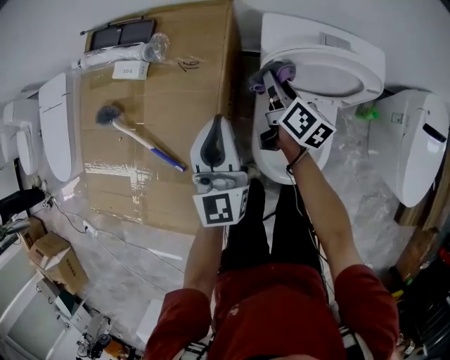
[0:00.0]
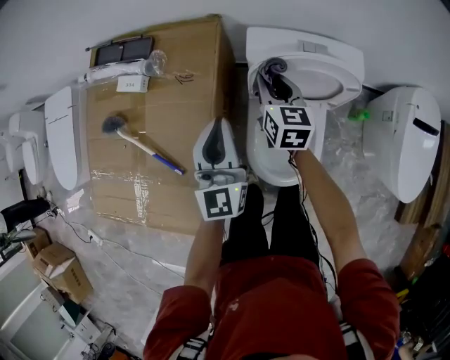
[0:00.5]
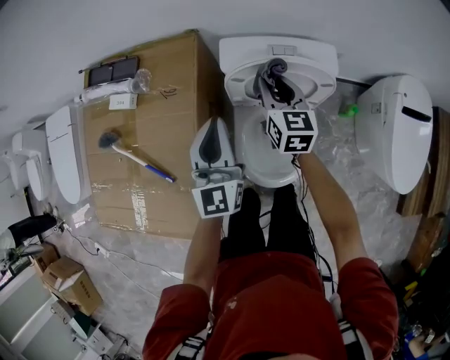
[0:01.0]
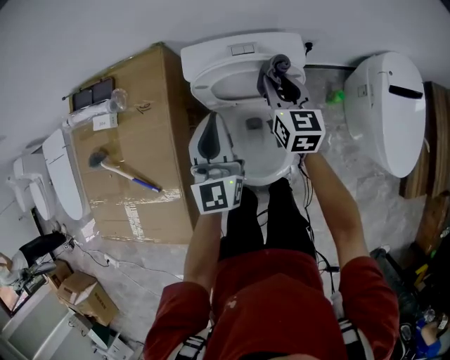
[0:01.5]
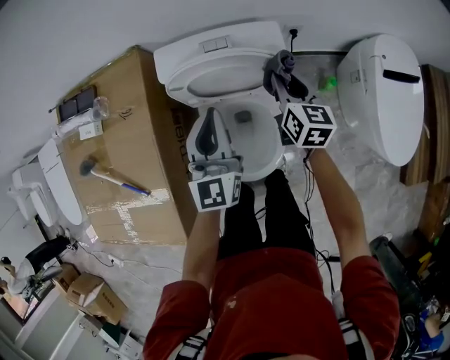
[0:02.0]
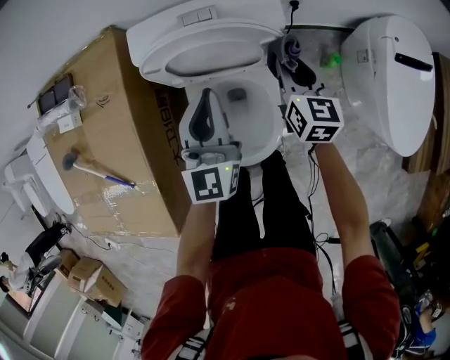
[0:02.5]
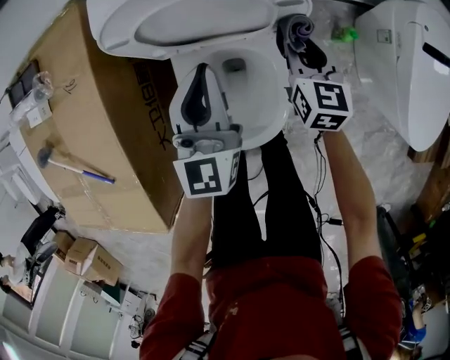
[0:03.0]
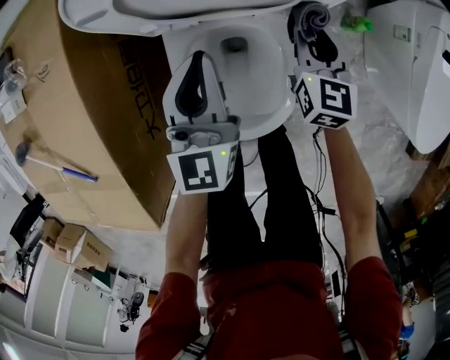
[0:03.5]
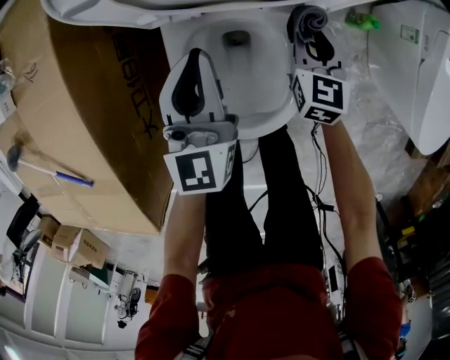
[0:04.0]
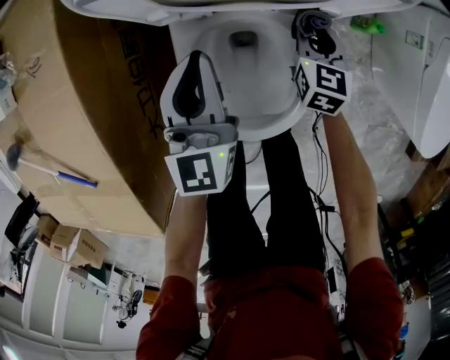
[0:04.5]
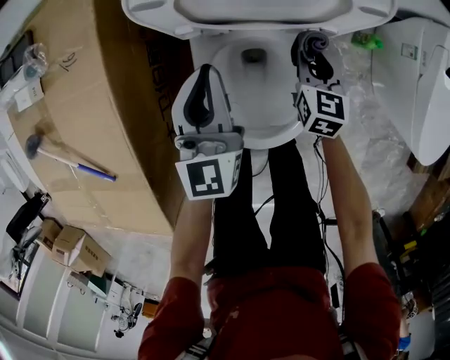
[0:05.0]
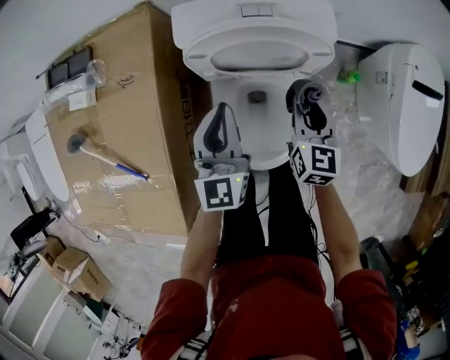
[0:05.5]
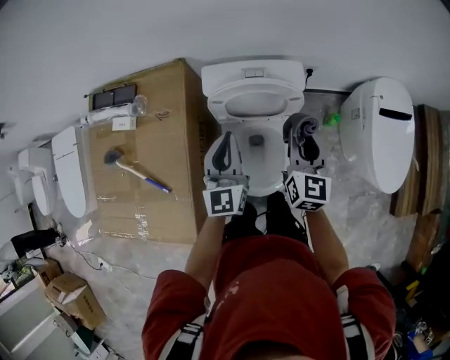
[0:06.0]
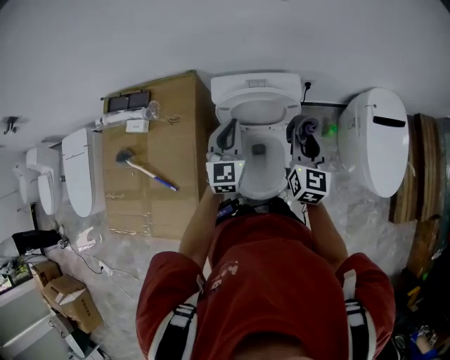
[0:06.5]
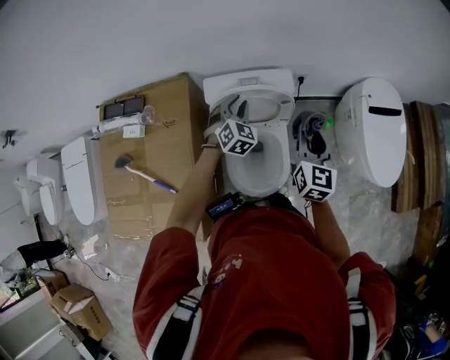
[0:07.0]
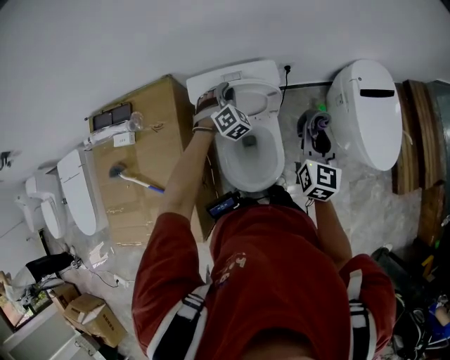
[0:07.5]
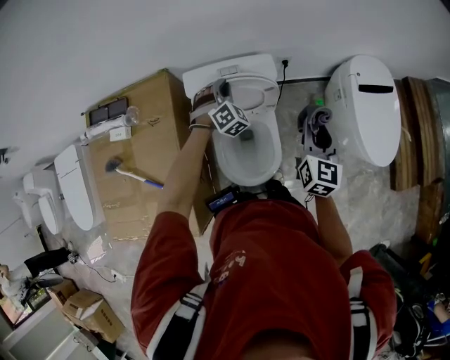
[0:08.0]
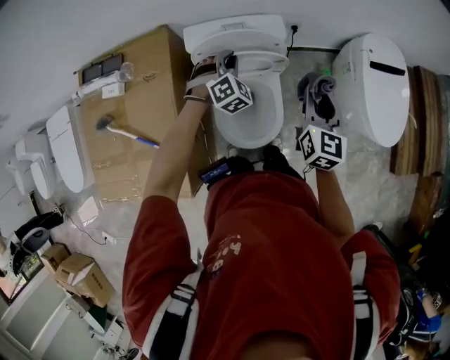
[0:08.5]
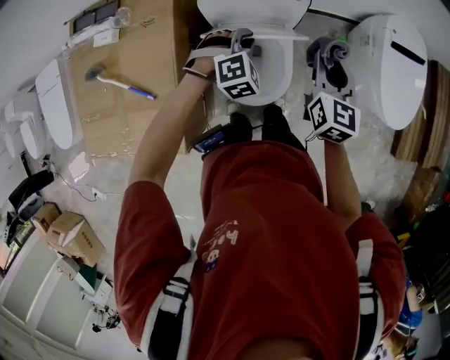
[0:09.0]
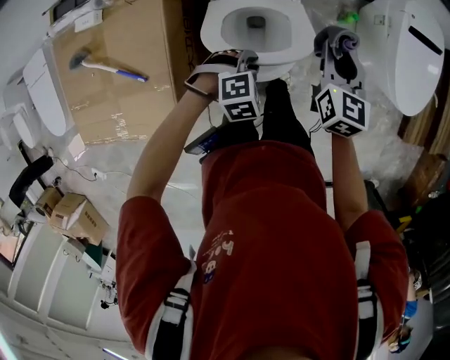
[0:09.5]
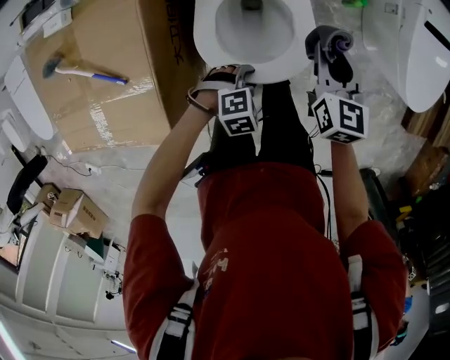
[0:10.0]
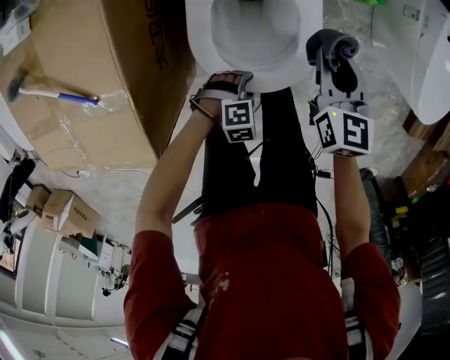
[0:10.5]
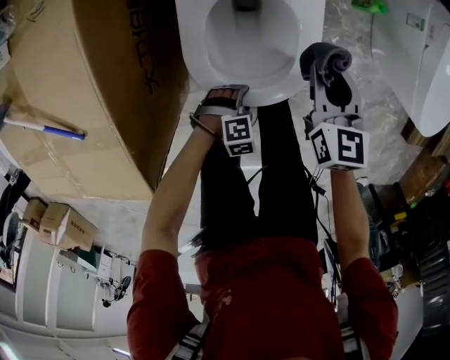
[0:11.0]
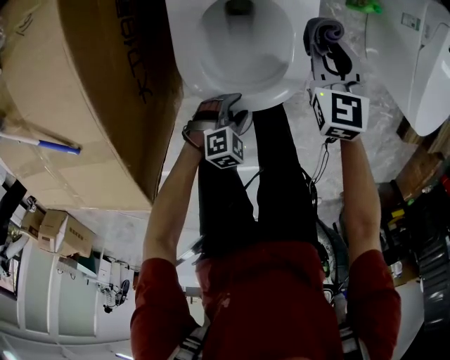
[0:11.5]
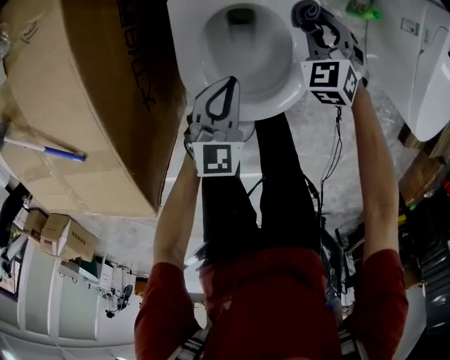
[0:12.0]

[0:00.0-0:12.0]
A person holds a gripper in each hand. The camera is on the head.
0:00.0 to 0:02.0: Both grippers travel together to the right, roughly 25 cm. The right gripper changes its angle by some 30 degrees.
0:02.0 to 0:04.0: Both grippers move downward, about 25 cm. The right gripper changes its angle by approximately 20 degrees.
0:04.0 to 0:06.0: The grippers both shift upward by about 35 cm.
0:06.0 to 0:08.0: The left gripper moves forward and downward, about 20 cm, and rolls clockwise, seen from behind, by about 60 degrees, while the right gripper heads to the right, covering about 10 cm.
0:08.0 to 0:10.0: The right gripper moves downward, about 20 cm, and rotates roughly 20 degrees; the left gripper moves about 40 cm, tilts its fingers some 40 degrees downward, and opens.
0:10.0 to 0:12.0: The right gripper shifts roughly 25 cm downward, and rotates around the line of its fingers by approximately 50 degrees, counterclockwise from behind. The left gripper moves approximately 20 cm downward and comes back, points its fingers about 40 degrees further upward, and closes its fingers.

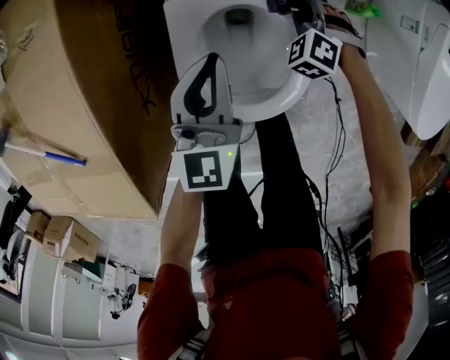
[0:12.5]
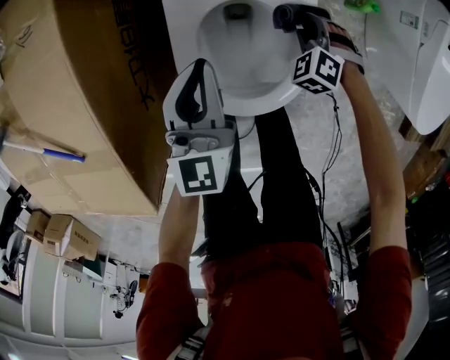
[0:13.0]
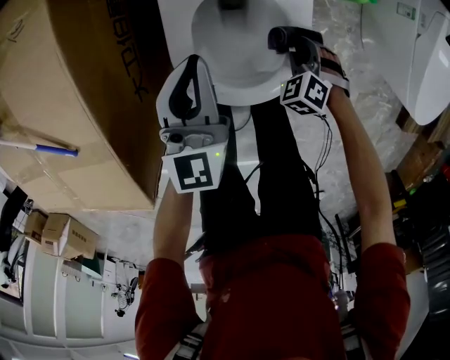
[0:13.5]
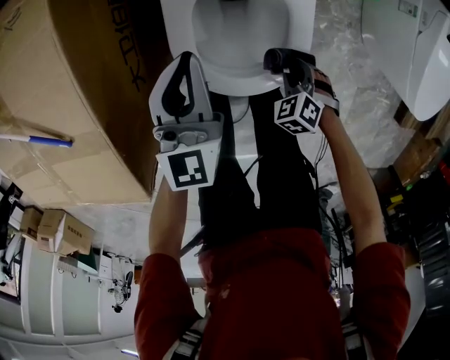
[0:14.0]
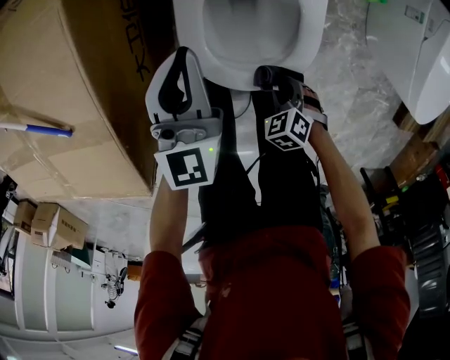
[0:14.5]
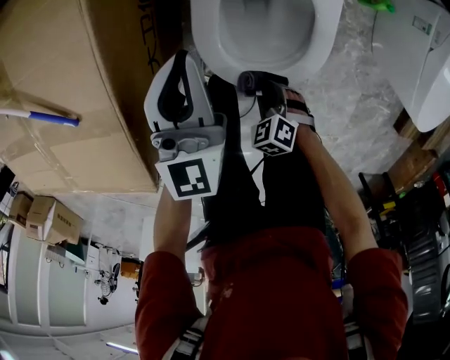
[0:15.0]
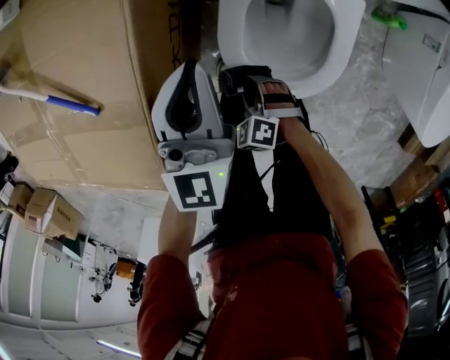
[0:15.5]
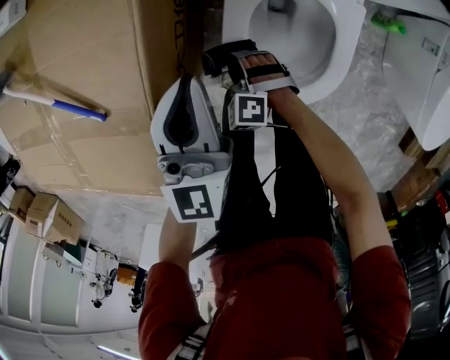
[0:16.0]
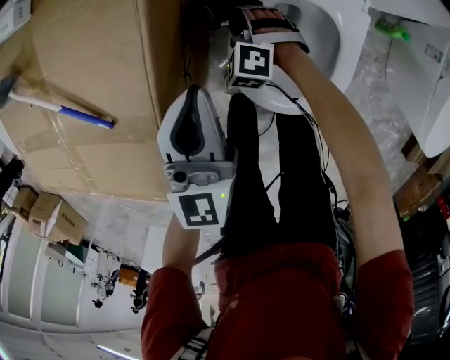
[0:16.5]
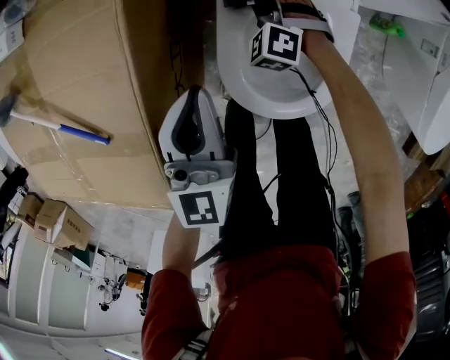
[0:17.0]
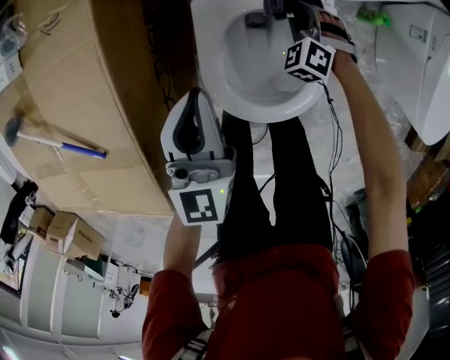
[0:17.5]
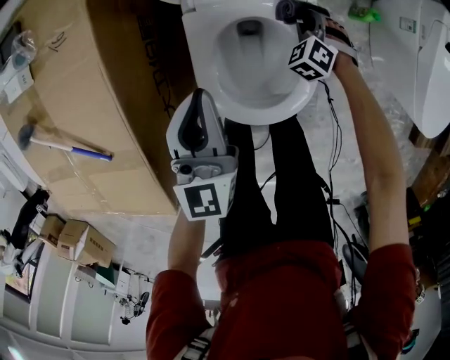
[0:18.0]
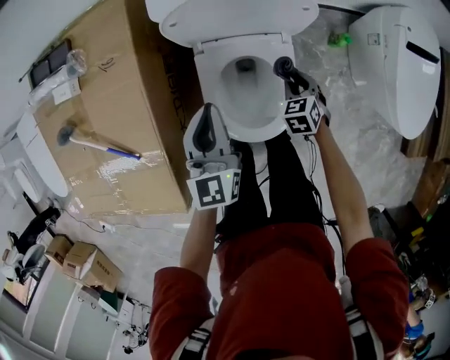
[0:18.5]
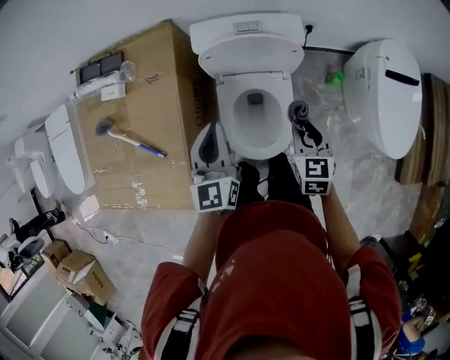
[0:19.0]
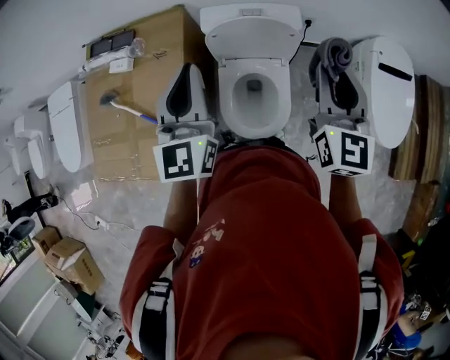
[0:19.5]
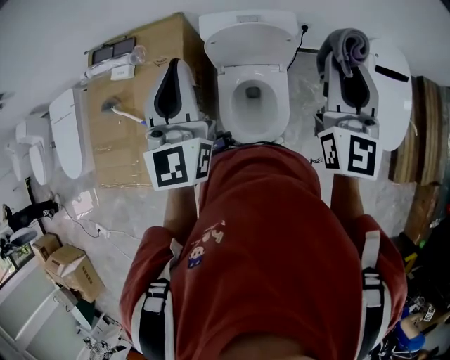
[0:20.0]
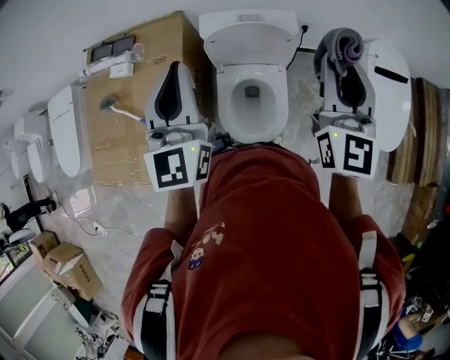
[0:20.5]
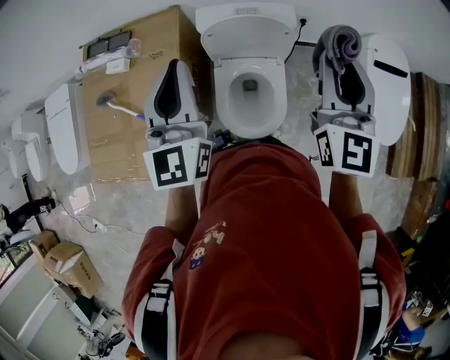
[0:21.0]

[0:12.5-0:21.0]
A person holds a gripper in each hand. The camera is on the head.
0:12.5 to 0:14.5: The right gripper moves roughly 30 cm, and rotates approximately 30 degrees. The left gripper changes place by roughly 10 cm.
0:14.5 to 0:16.5: The left gripper moves about 10 cm, while the right gripper moves some 35 cm, and swivels about 40 degrees.
0:16.5 to 0:19.0: The left gripper heads upward and to the right, covering some 25 cm, while the right gripper shifts about 50 cm upward and to the right, and twists roughly 70 degrees clockwise, seen from behind.
0:19.0 to 0:21.0: The two grippers go approximately 25 cm upward. The right gripper angles its fingers upward, by some 40 degrees.

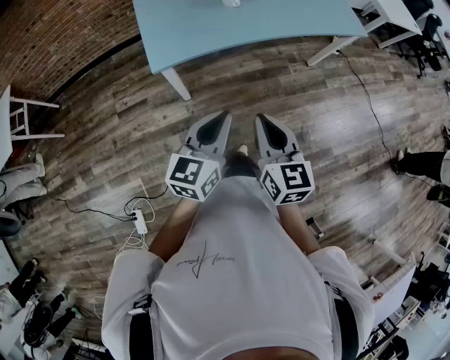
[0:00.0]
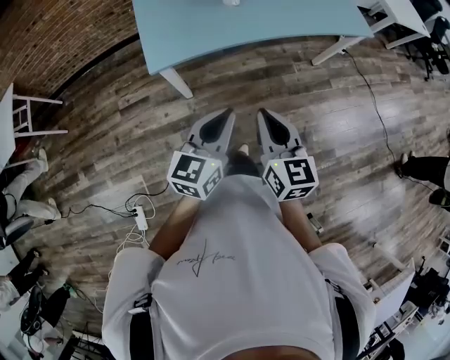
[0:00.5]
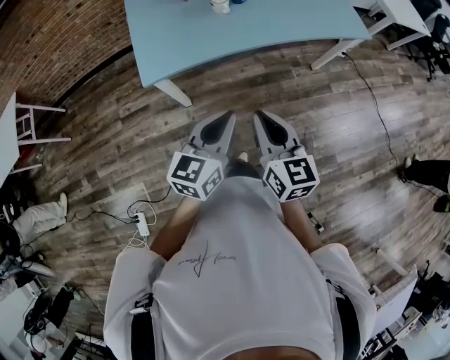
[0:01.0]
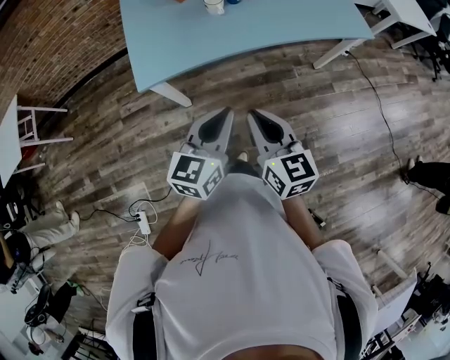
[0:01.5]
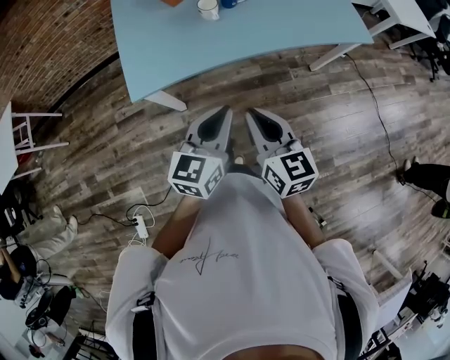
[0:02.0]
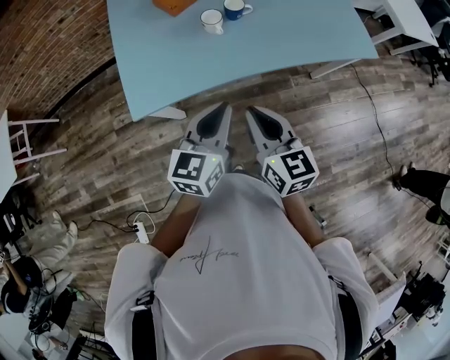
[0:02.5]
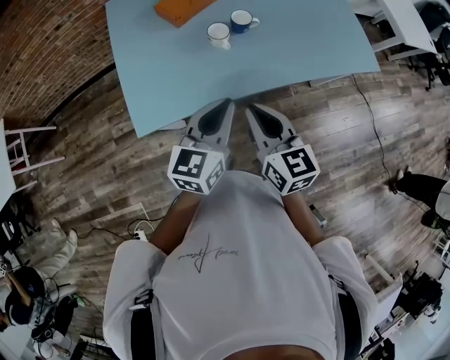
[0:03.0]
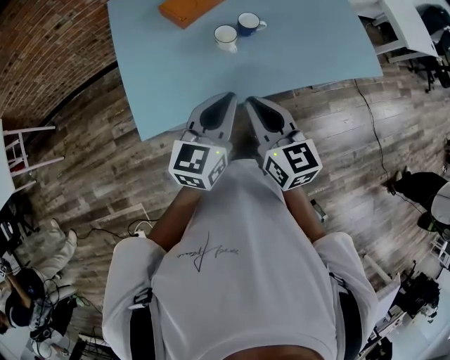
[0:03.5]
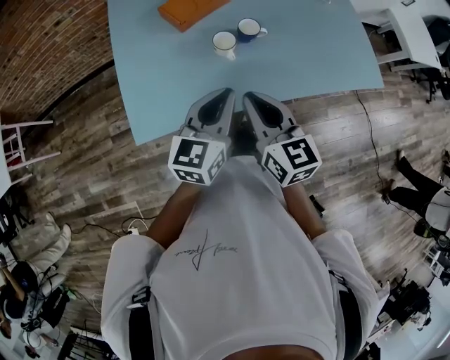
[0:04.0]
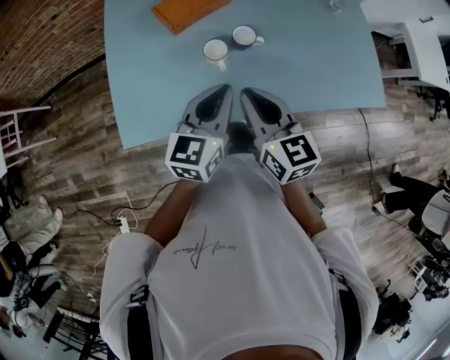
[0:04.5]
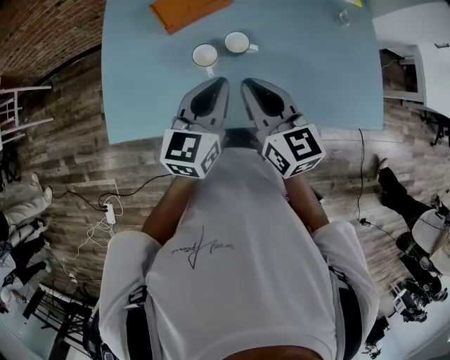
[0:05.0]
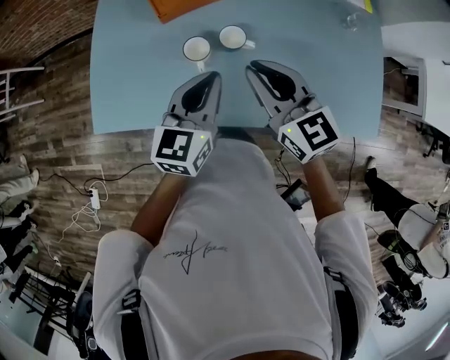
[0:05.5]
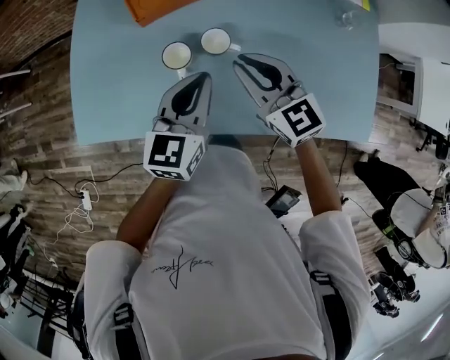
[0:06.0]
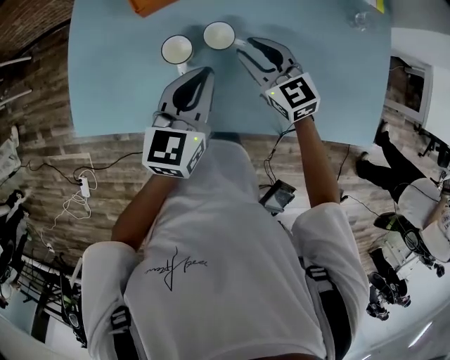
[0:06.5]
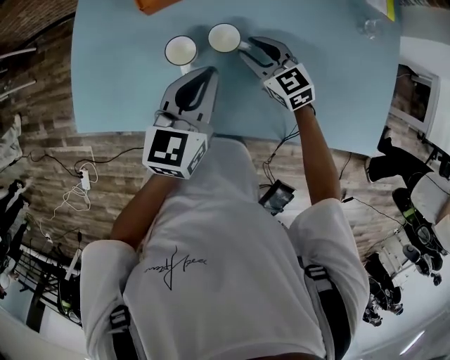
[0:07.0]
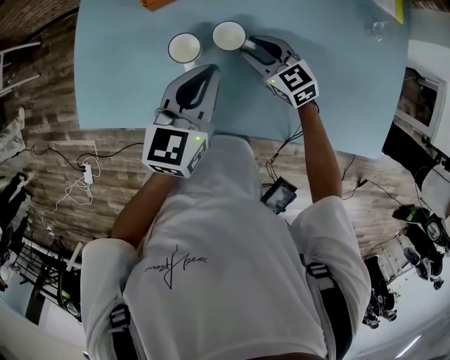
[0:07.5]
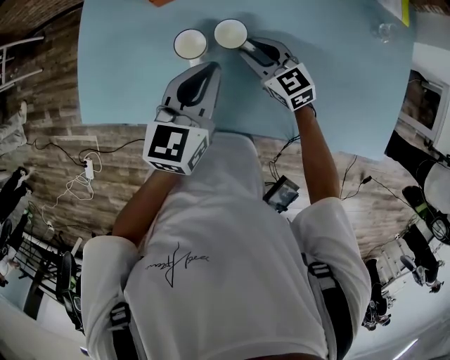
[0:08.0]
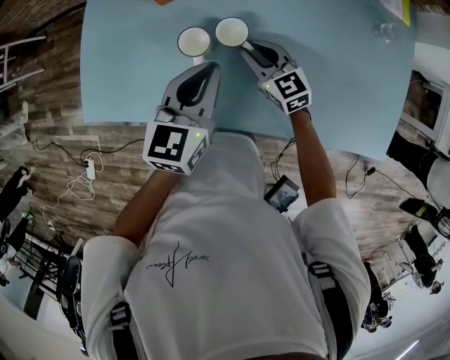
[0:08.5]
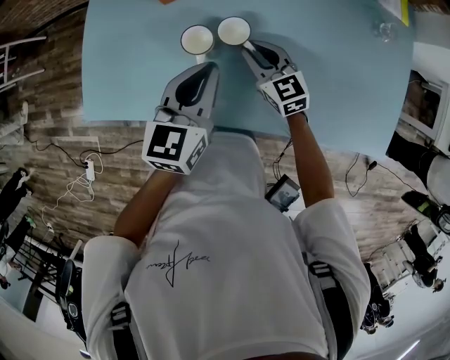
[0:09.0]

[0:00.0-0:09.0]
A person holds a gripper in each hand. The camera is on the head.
0:00.0 to 0:02.0: Both grippers travel together forward and to the right, about 15 cm.
0:02.0 to 0:04.5: Both grippers travel together forward, roughly 25 cm.
0:04.5 to 0:07.0: The left gripper heads forward, to the right and downward, covering approximately 15 cm. The right gripper travels downward, forward and to the right by some 30 cm, swivels about 40 degrees, and opens its fingers.
0:07.0 to 0:09.0: The grippers make only small movements.
